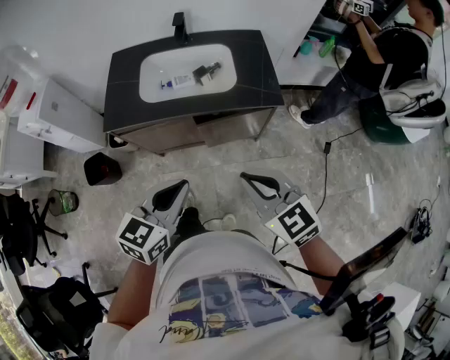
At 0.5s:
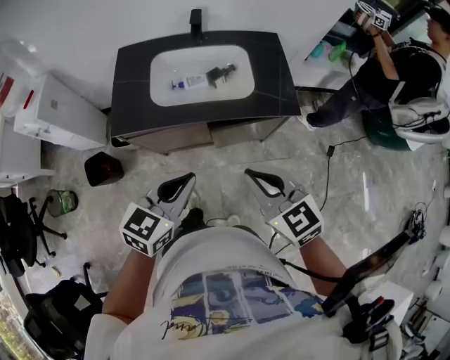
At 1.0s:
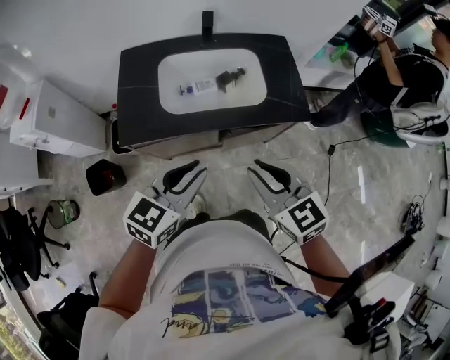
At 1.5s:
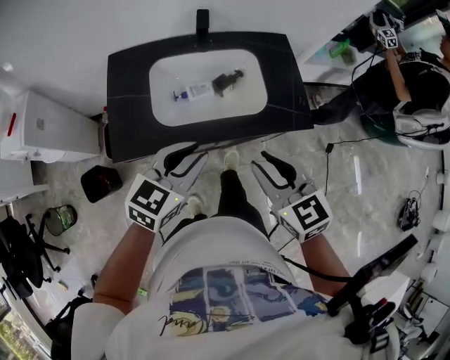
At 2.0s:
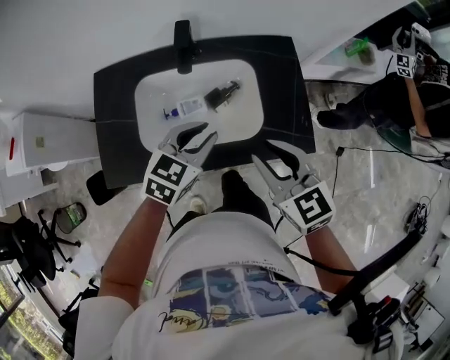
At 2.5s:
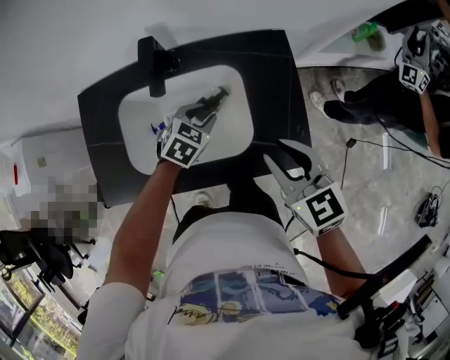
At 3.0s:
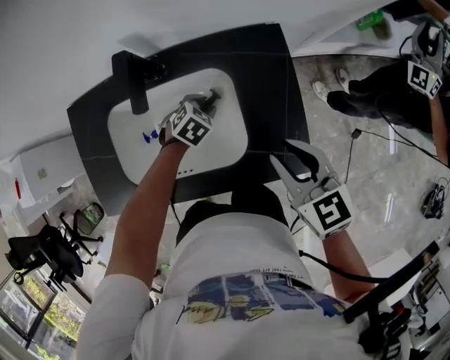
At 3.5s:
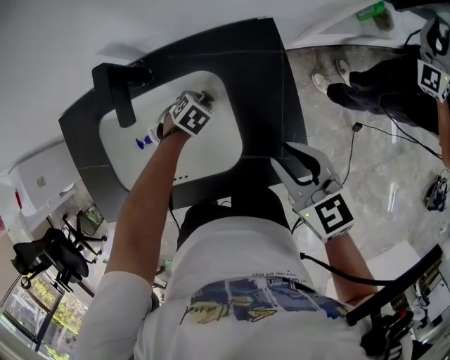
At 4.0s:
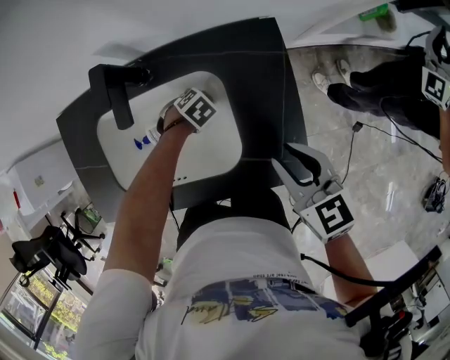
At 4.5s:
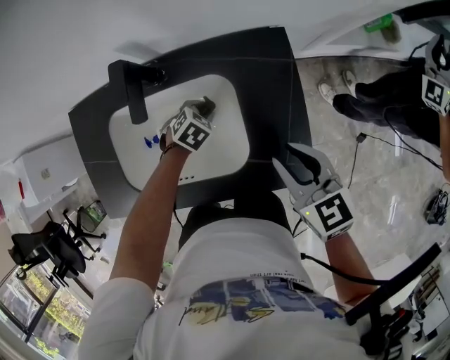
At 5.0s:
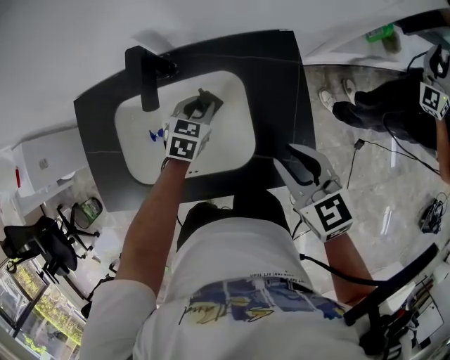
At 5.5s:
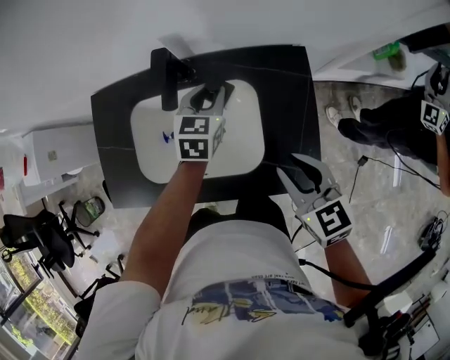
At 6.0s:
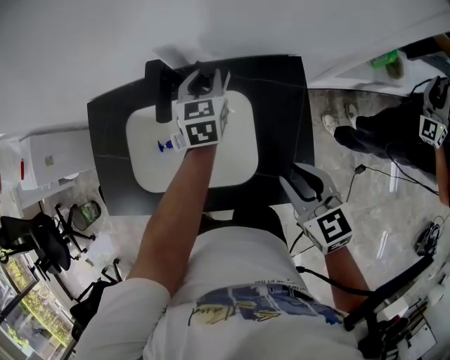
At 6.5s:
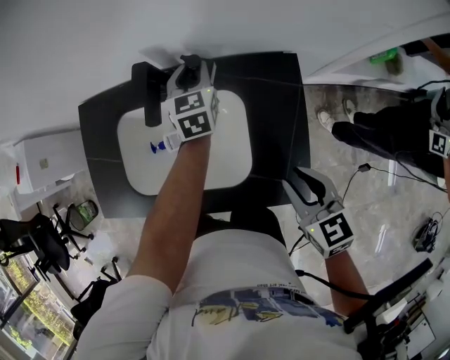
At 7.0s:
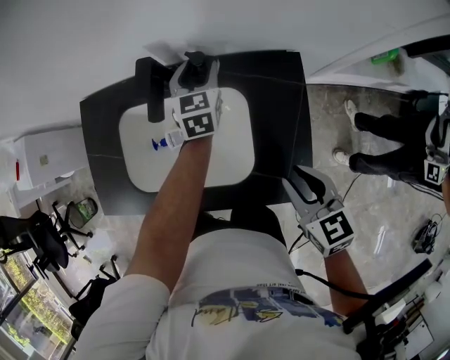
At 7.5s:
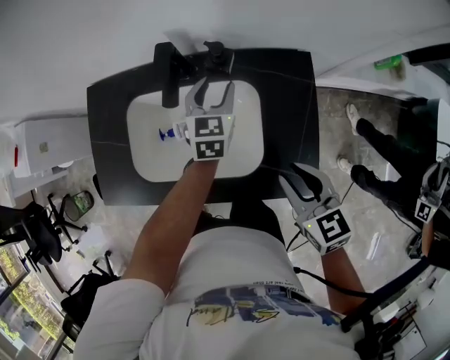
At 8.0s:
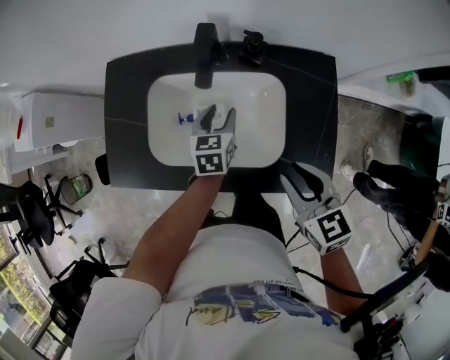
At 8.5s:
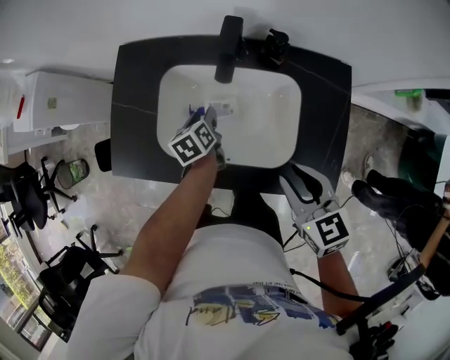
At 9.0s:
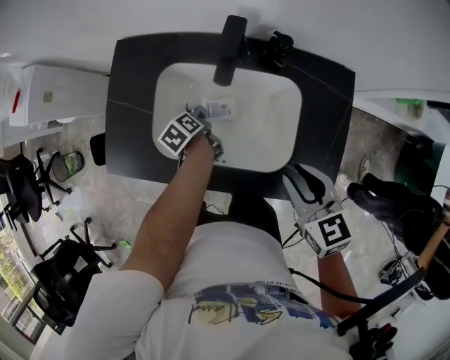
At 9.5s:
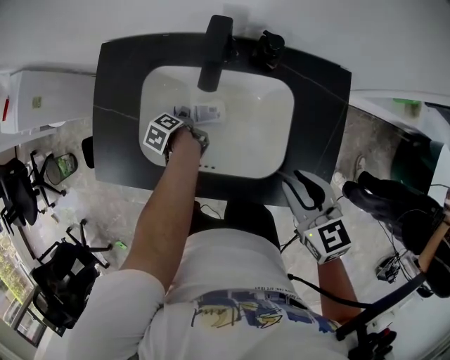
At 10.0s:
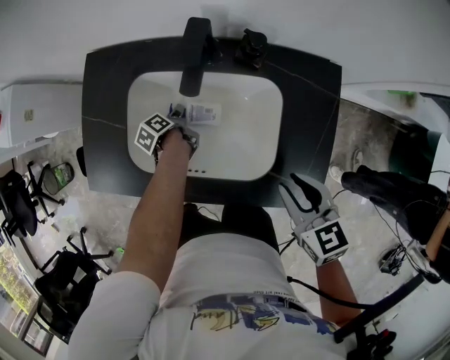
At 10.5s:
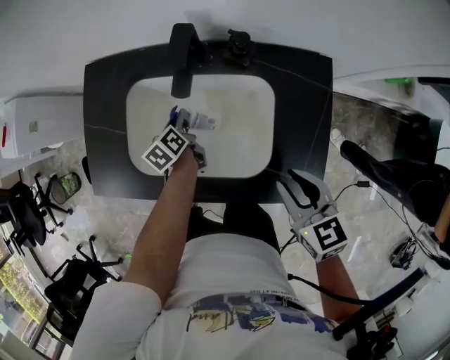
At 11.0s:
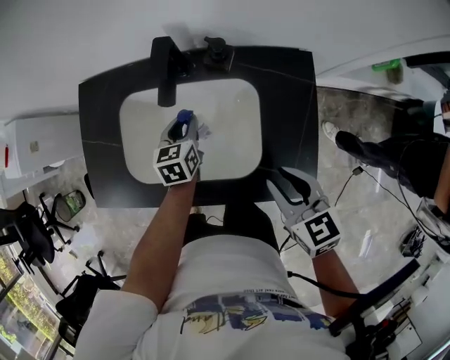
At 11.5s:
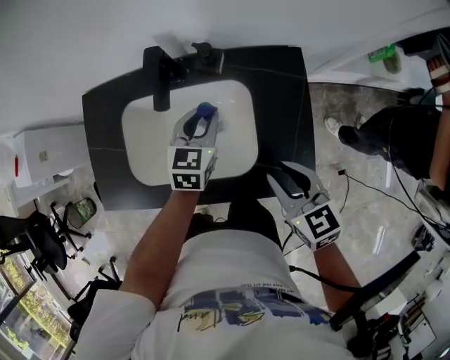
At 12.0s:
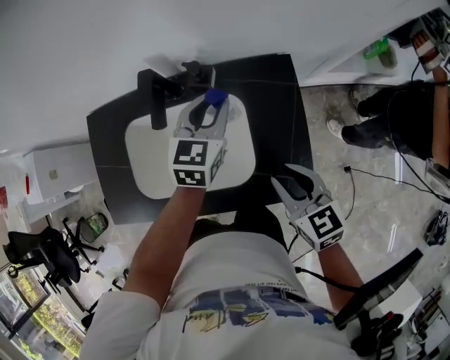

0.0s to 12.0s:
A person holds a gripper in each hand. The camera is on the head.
0.0s to 2.0s: Both grippers travel together forward, some 35 cm. The left gripper opens up. The right gripper opens its fingers.
2.0s to 4.0s: The left gripper shifts roughly 30 cm downward, and tilts its fingers roughly 50 degrees downward. The right gripper ends up some 20 cm from where it was.
4.0s to 6.0s: The left gripper heads upward, covering about 25 cm, and tips its fingers upward by some 50 degrees.
6.0s to 8.0s: The left gripper travels backward, to the left and downward by some 20 cm, and opens up. The right gripper shifts approximately 10 cm to the left.
8.0s to 10.0s: The left gripper is displaced downward and to the left by roughly 20 cm, and twists approximately 70 degrees counterclockwise, seen from behind.
10.0s to 12.0s: The right gripper ends up some 5 cm from where it was. Meanwhile the left gripper is displaced upward and to the right by some 40 cm, and rotates around the line of its fingers by roughly 90 degrees, clockwise from behind.

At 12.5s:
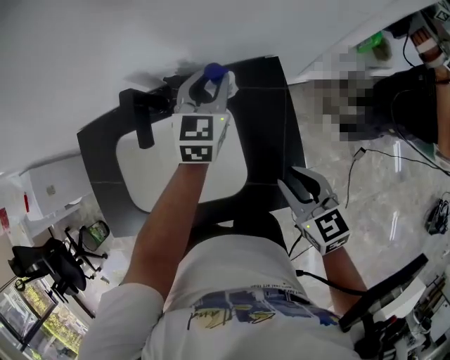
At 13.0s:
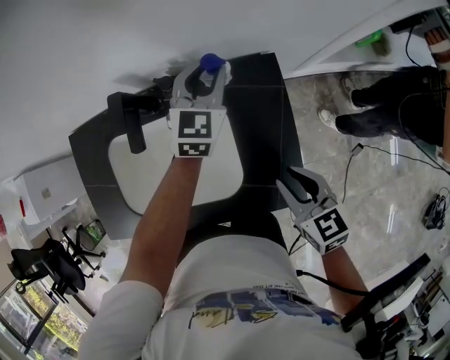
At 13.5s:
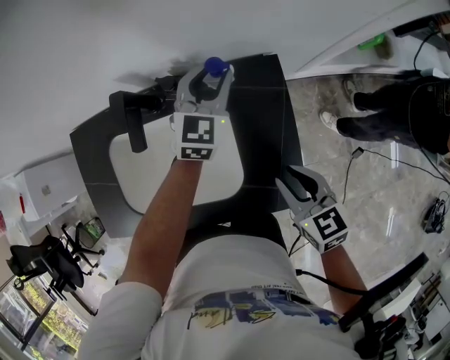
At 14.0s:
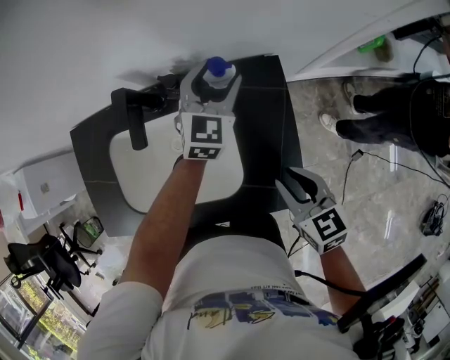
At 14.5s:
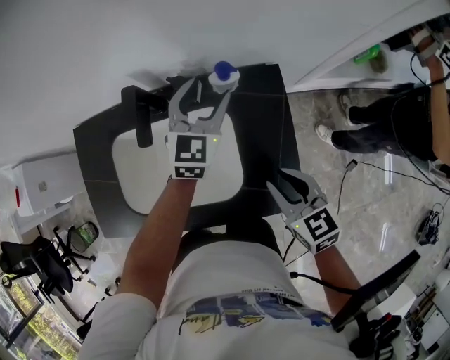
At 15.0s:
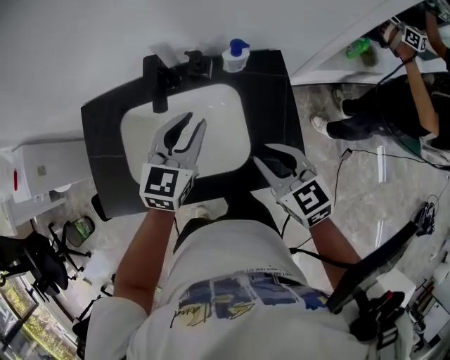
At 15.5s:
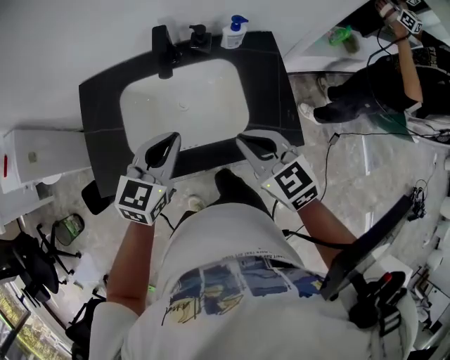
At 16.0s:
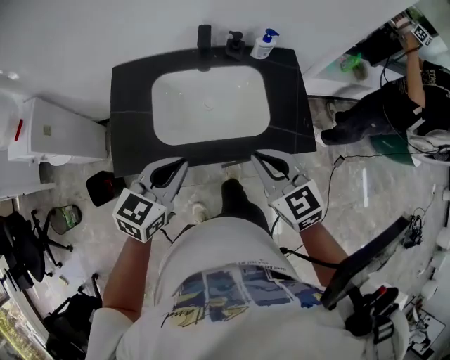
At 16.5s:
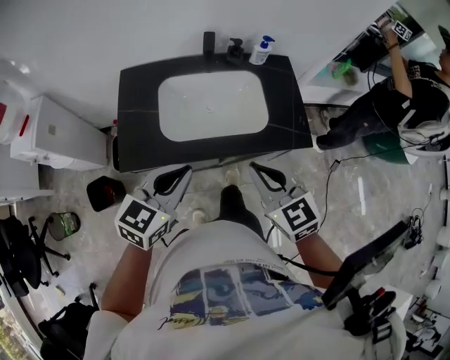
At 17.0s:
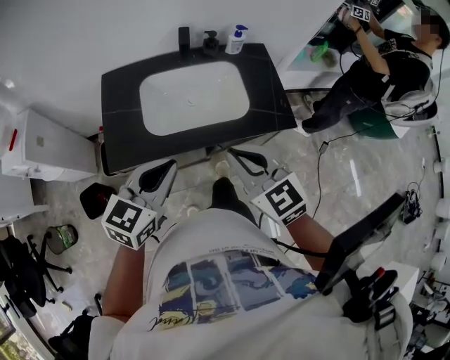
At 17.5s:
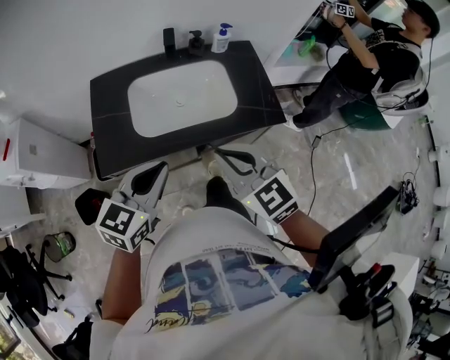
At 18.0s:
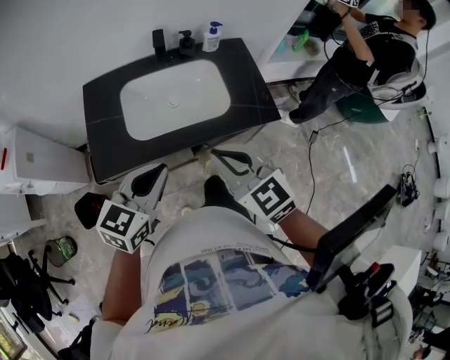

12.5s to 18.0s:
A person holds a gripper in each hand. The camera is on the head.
12.5s to 14.5s: The left gripper opens its fingers.
14.5s to 16.0s: The right gripper moves to the left, backward and upward, approximately 30 cm, changes its angle by approximately 20 degrees, and closes up. The left gripper goes some 50 cm backward and to the left, turns by some 20 degrees, and closes up.
16.0s to 18.0s: Both grippers travel together backward, some 10 cm.

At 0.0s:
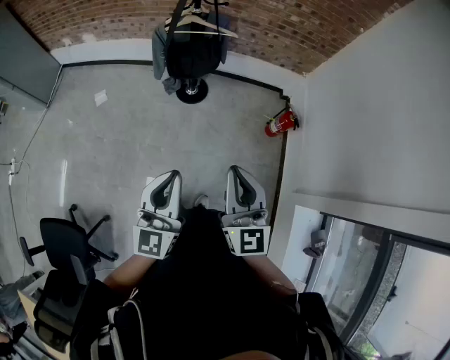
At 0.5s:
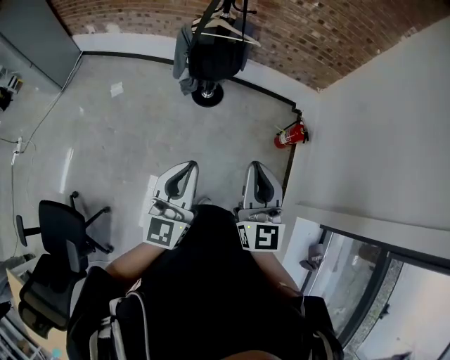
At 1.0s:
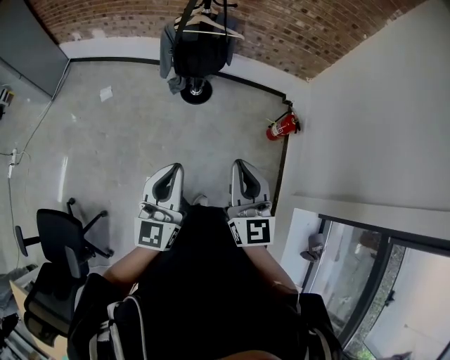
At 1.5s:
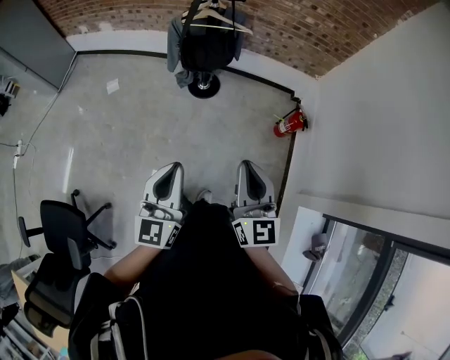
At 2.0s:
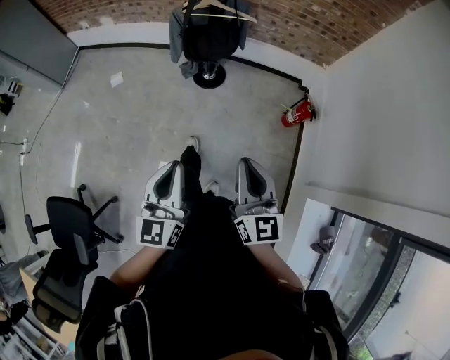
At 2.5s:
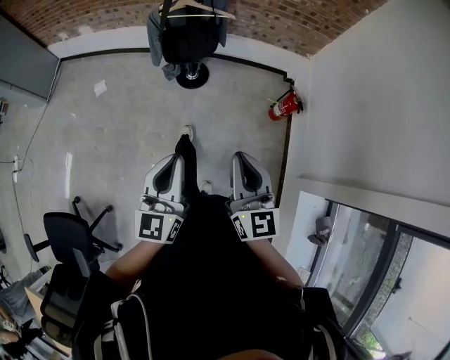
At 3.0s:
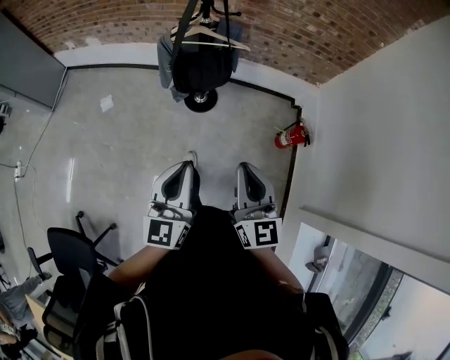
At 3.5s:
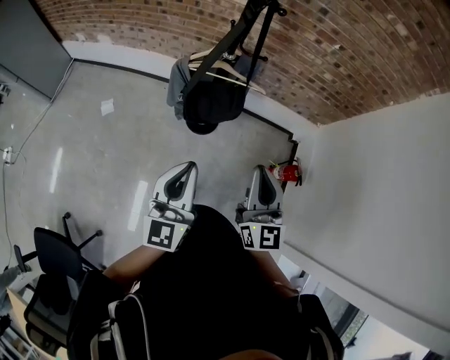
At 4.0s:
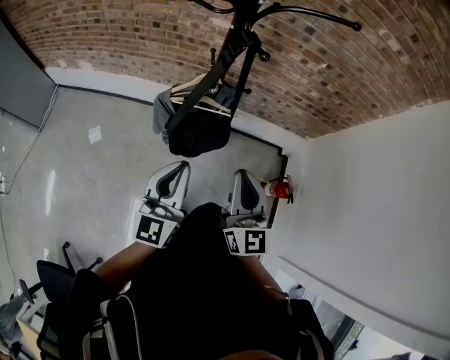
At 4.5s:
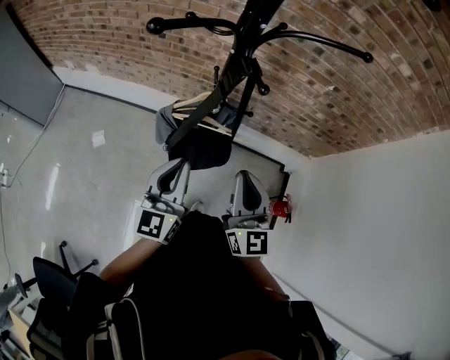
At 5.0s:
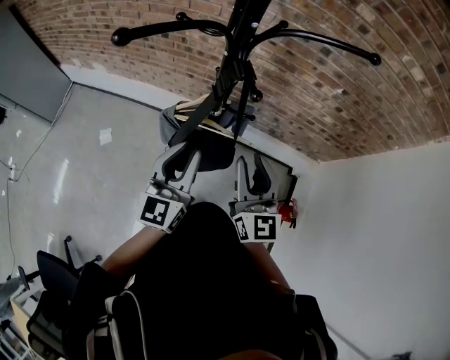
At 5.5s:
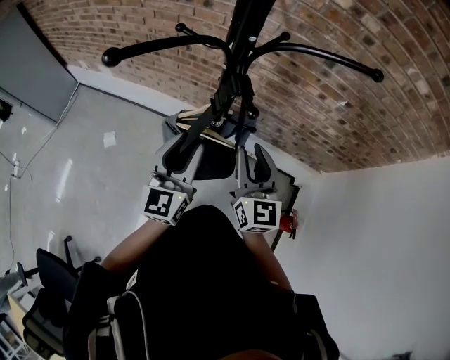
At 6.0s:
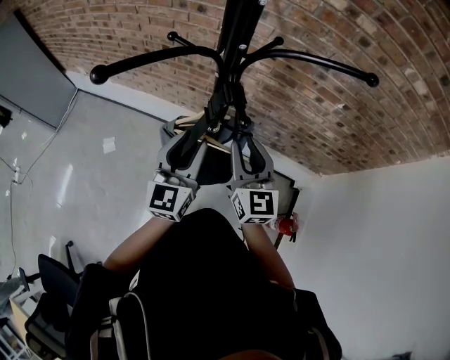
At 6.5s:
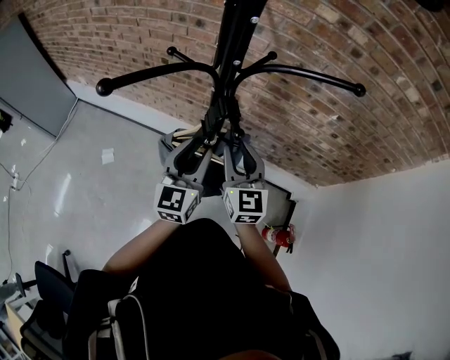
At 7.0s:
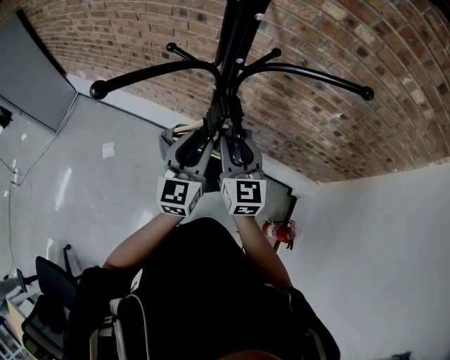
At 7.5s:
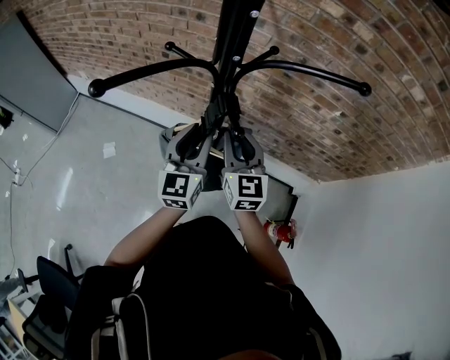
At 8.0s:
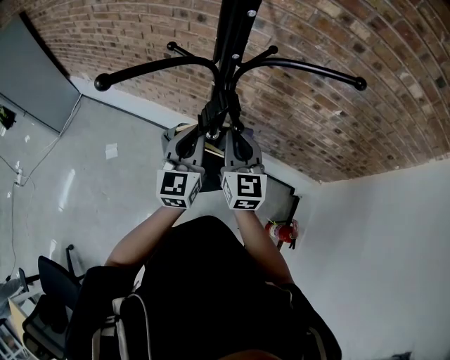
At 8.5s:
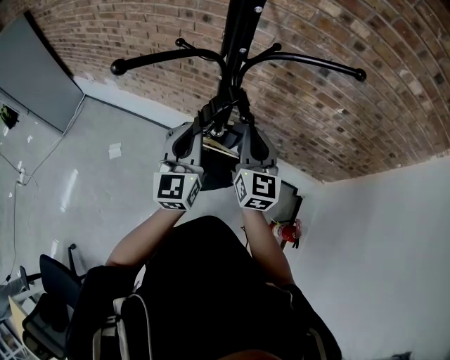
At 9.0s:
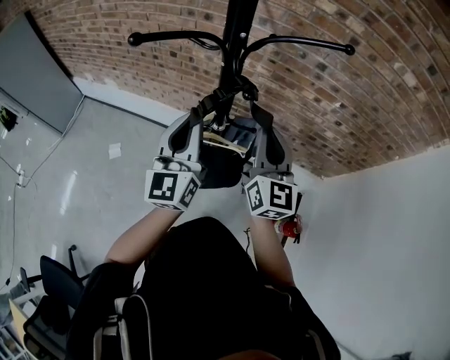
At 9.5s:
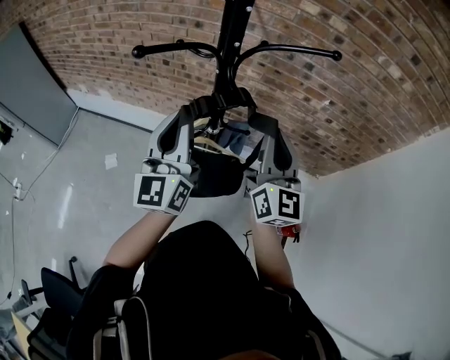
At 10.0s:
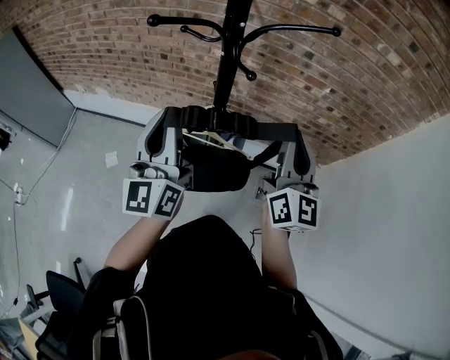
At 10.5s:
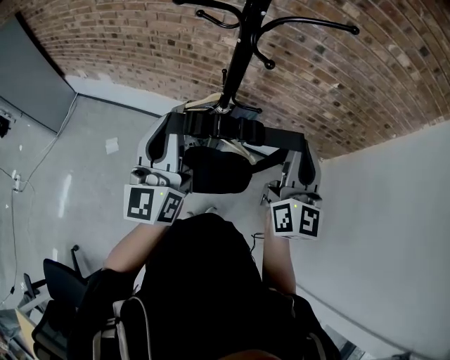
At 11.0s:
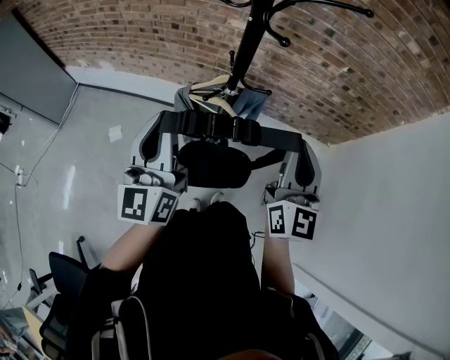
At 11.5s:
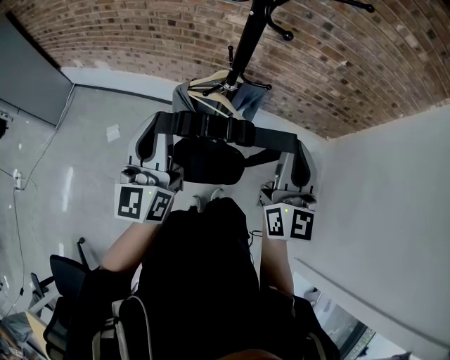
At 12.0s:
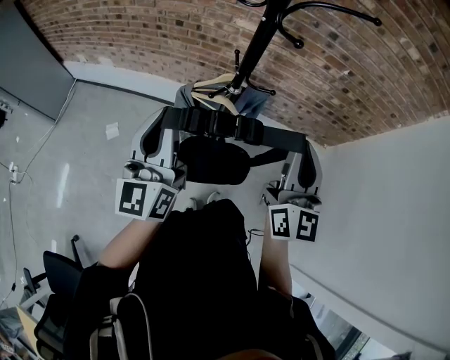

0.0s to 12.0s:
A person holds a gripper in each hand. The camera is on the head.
0.0s to 2.0s: The right gripper moves approximately 5 cm.
2.0s to 4.0s: Both grippers are carried forward, roughly 50 cm.
4.0s to 6.0s: Both grippers move forward, about 20 cm. The left gripper opens its fingers, while the right gripper opens up.
6.0s to 8.0s: The right gripper closes up. Meanwhile the left gripper closes up.
8.0s to 10.0s: The left gripper heads upward, backward and to the left, covering some 20 cm, and turns by approximately 20 degrees, while the right gripper shifts about 20 cm upward, backward and to the right, and turns by approximately 30 degrees.
10.0s to 12.0s: The left gripper travels backward, to the left and downward by some 10 cm; the right gripper heads backward and to the left, covering about 10 cm.
